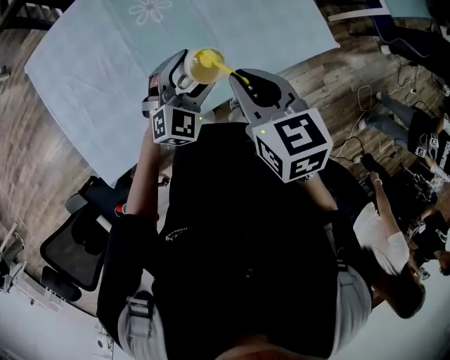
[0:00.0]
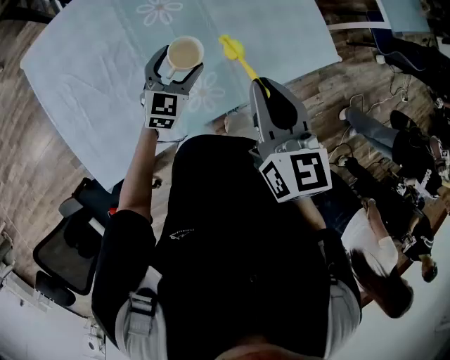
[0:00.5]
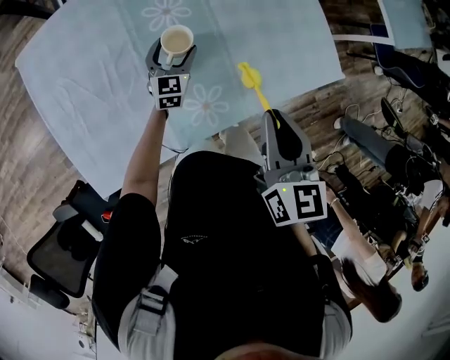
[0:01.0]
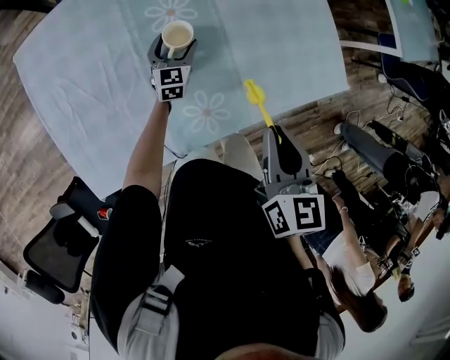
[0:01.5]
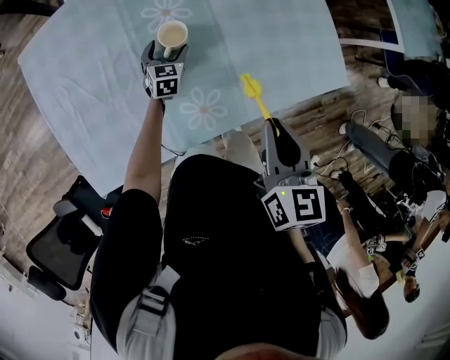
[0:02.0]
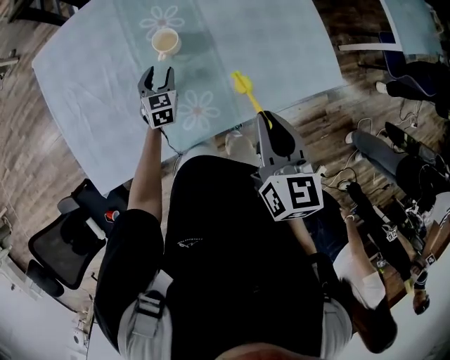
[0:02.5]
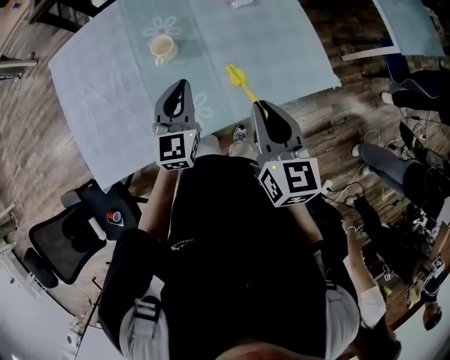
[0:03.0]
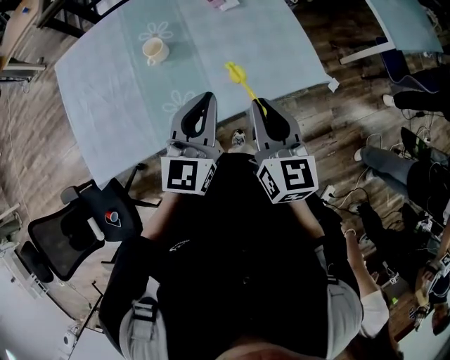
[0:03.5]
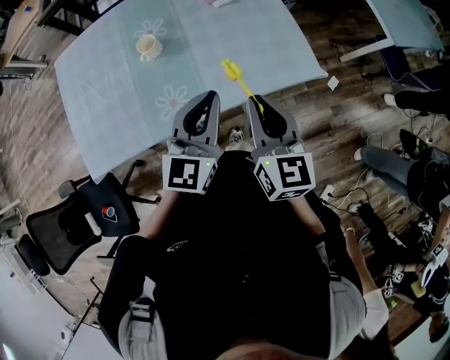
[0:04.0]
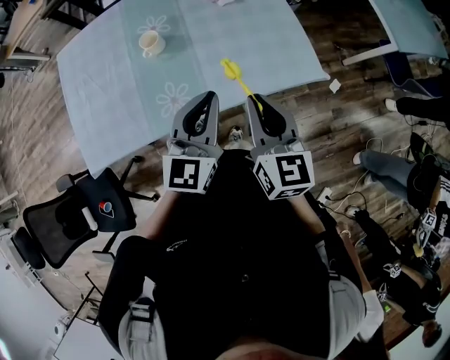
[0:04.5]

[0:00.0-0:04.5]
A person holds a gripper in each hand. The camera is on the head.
0.0 to 2.0 s: The right gripper shifts by approximately 5 cm. The left gripper moves downward, forward and to the left, approximately 30 cm, and turns by approximately 50 degrees.
2.0 to 4.5 s: The left gripper heads upward, backward and to the right, covering approximately 50 cm, tilts its fingers some 30 degrees upward, and closes. The right gripper heads to the right and backward, covering approximately 15 cm, and rotates about 20 degrees.

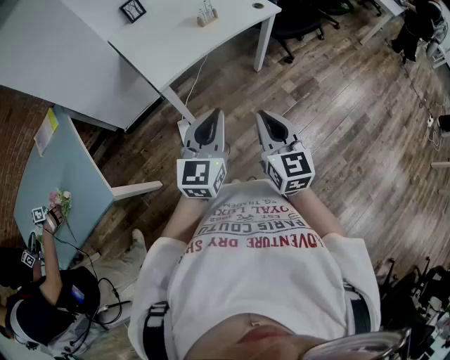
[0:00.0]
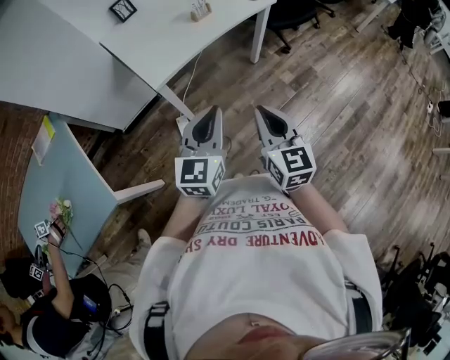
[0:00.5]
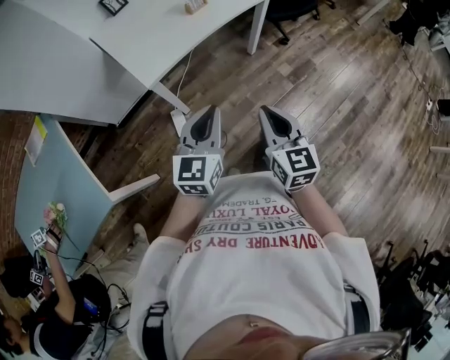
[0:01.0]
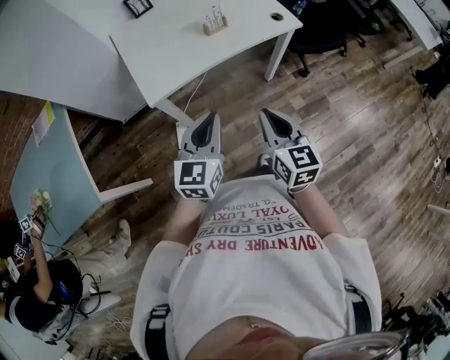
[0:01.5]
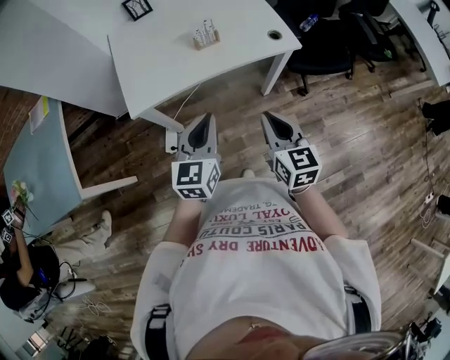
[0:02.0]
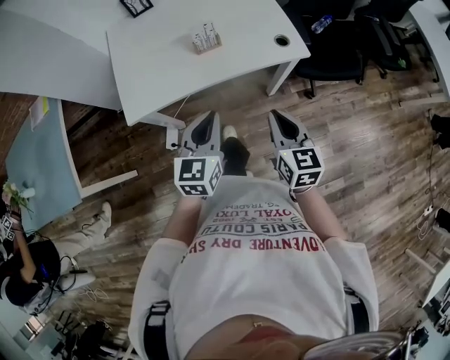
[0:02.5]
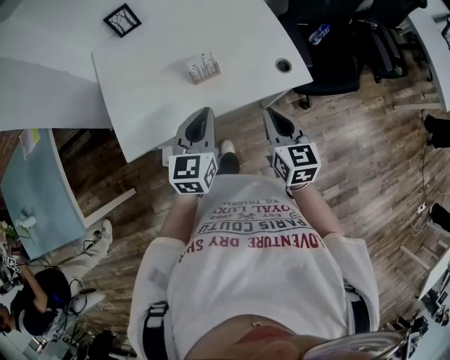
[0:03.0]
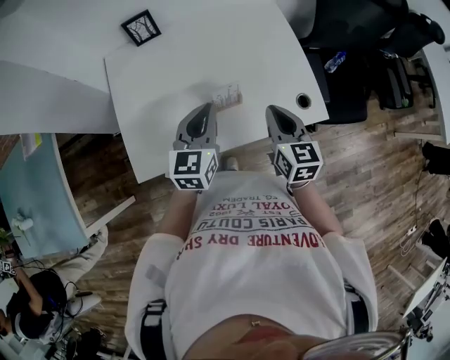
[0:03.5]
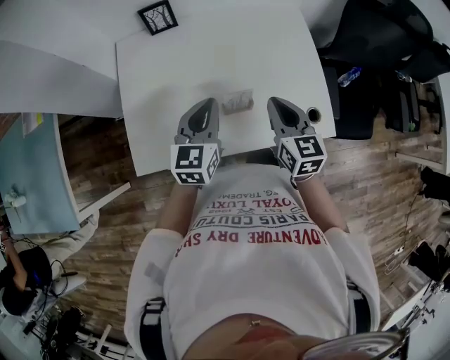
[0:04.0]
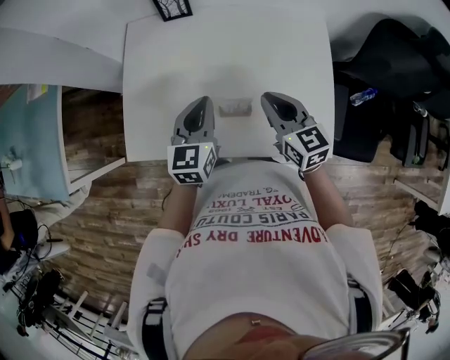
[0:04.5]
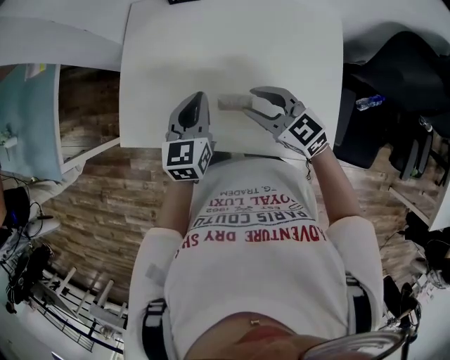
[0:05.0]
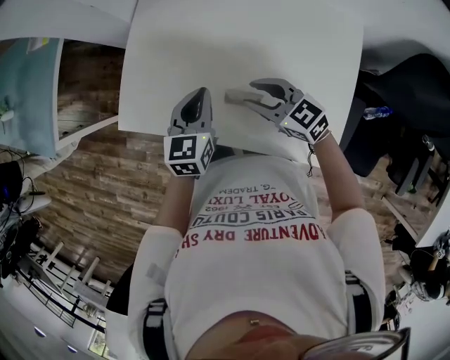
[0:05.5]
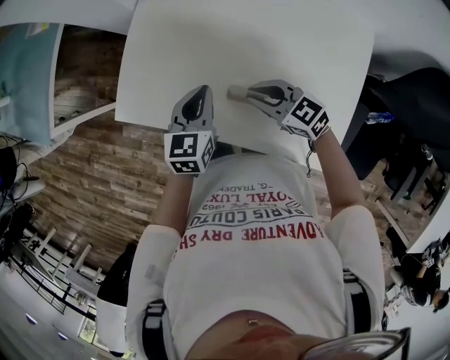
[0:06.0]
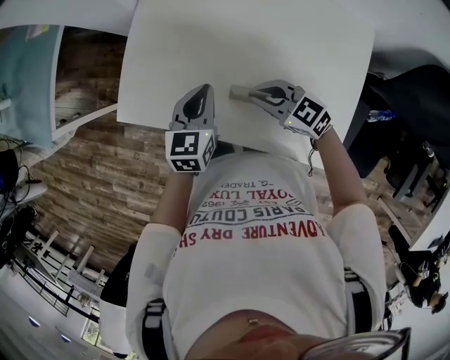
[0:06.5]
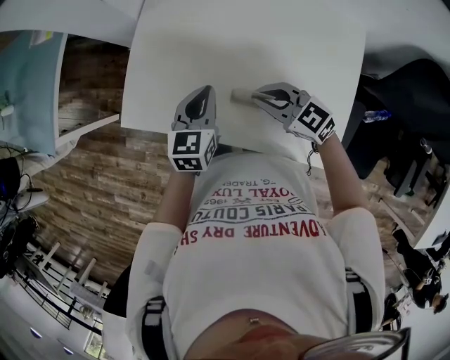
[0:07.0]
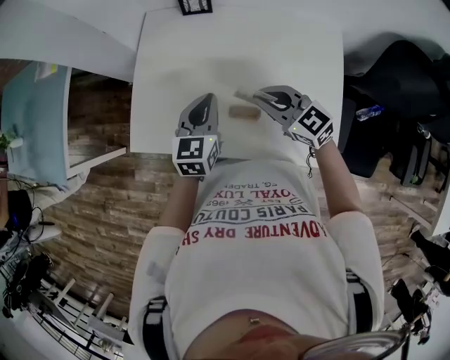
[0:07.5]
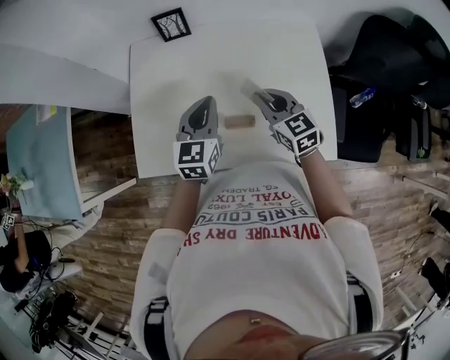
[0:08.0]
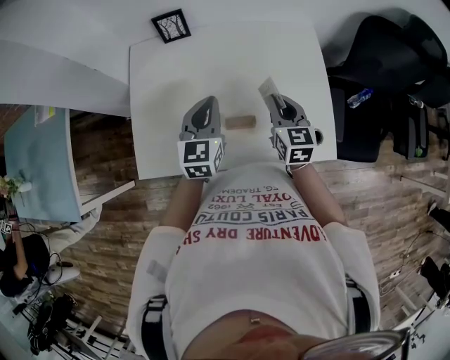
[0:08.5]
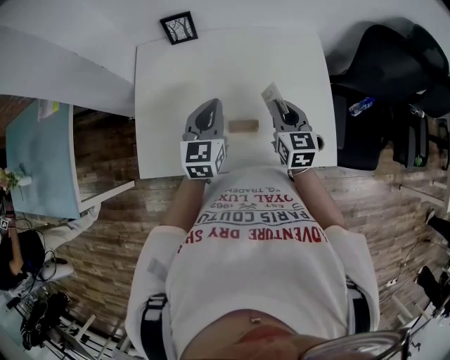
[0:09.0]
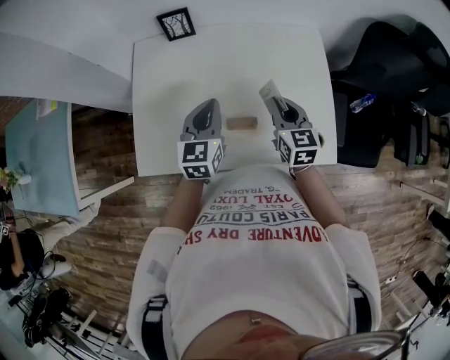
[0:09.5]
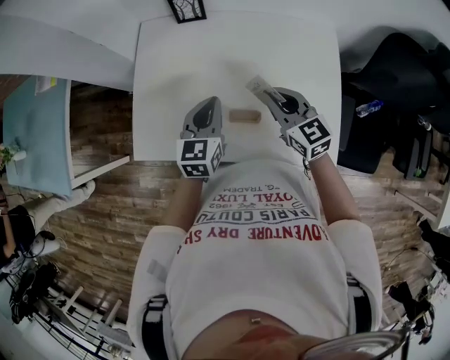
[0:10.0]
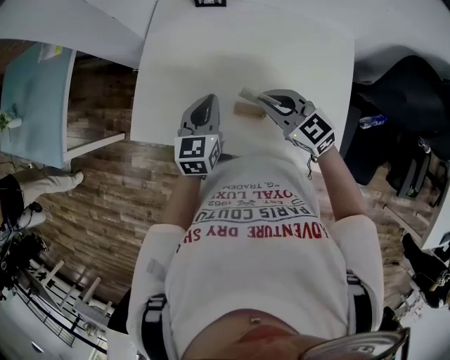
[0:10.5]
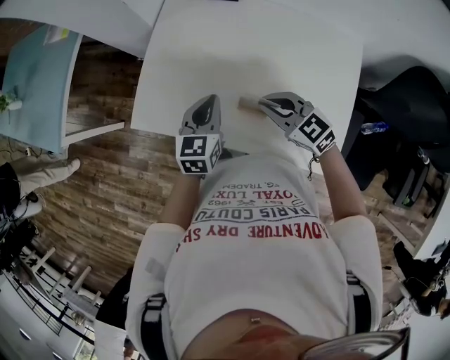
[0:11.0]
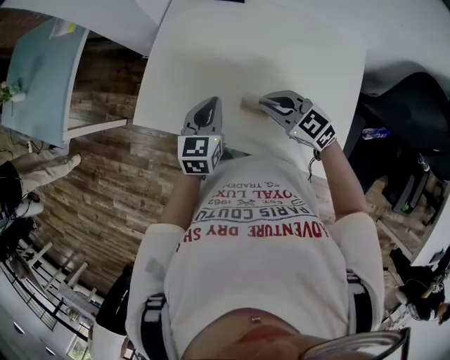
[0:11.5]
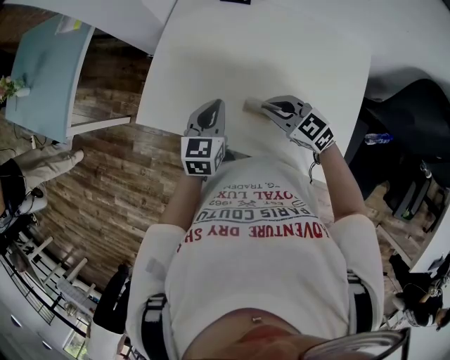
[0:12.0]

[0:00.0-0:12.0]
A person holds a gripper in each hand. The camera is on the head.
0.0 to 2.0 s: The grippers both shift forward and to the right by approximately 30 cm. The left gripper rotates approximately 20 degrees. Meanwhile the right gripper rotates some 20 degrees.
2.0 to 4.0 s: Both grippers move forward, some 40 cm.
4.0 to 6.0 s: Both grippers travel together downward, about 10 cm. The right gripper changes its angle by approximately 70 degrees, and opens, then closes again. Meanwhile the left gripper swivels about 30 degrees.
6.0 to 8.0 s: Both grippers move upward, about 10 cm. The right gripper rotates some 50 degrees, while the left gripper swivels about 20 degrees.
10.0 to 12.0 s: The left gripper moves roughly 5 cm. Meanwhile the right gripper shifts by about 10 cm, and rotates roughly 40 degrees.

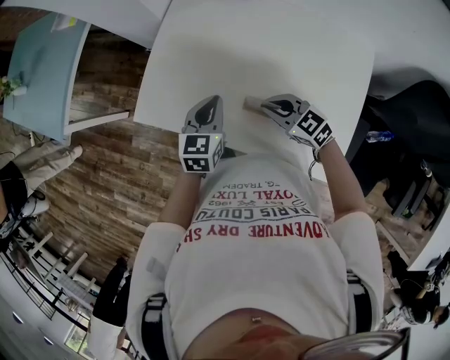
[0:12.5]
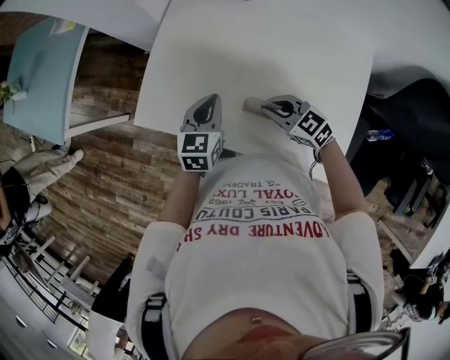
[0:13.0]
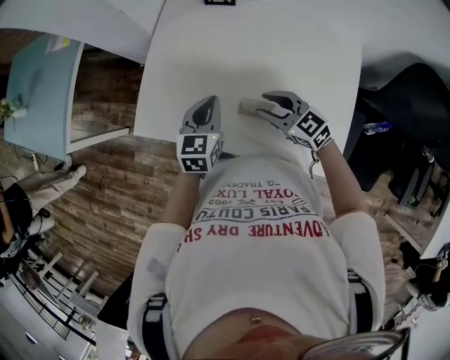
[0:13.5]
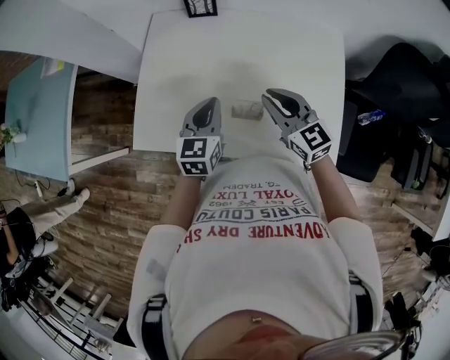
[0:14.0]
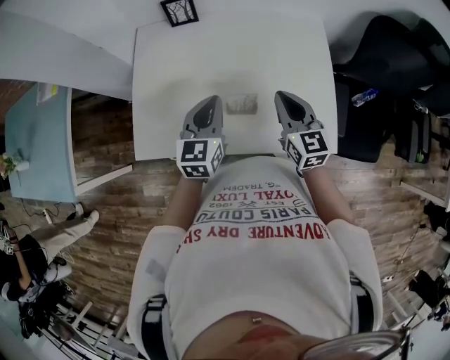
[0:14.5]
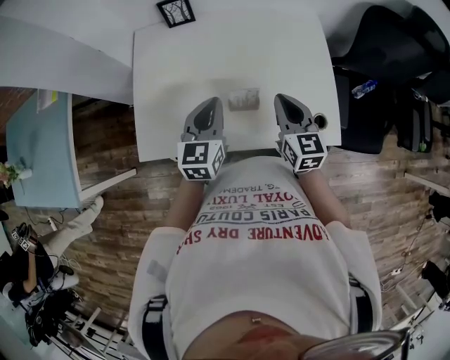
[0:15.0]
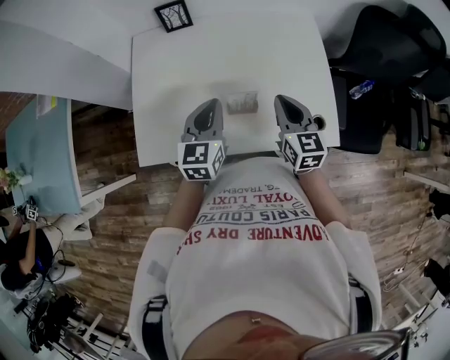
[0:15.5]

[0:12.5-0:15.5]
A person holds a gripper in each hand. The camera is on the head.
12.5 to 14.0 s: The right gripper travels upward by about 10 cm, swivels about 40 degrees, and opens, then closes again. Meanwhile the left gripper ends up approximately 5 cm from where it was.
14.0 to 15.5 s: The right gripper travels to the right and backward by about 10 cm, and changes its angle by approximately 30 degrees.

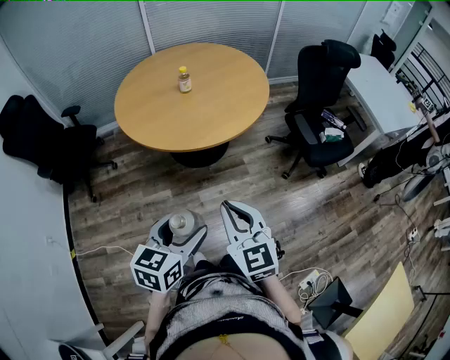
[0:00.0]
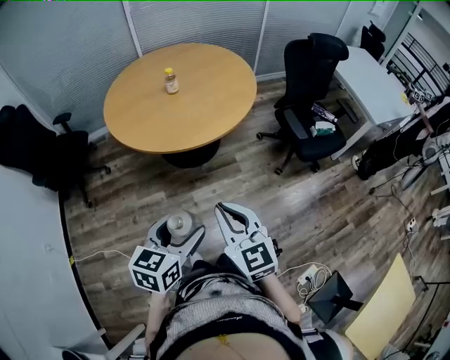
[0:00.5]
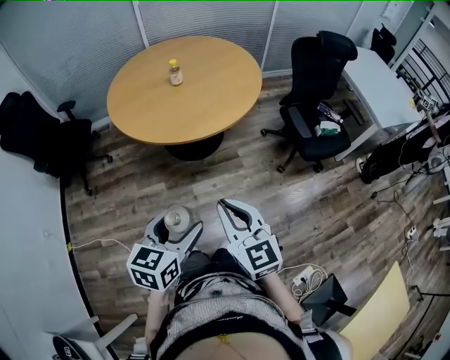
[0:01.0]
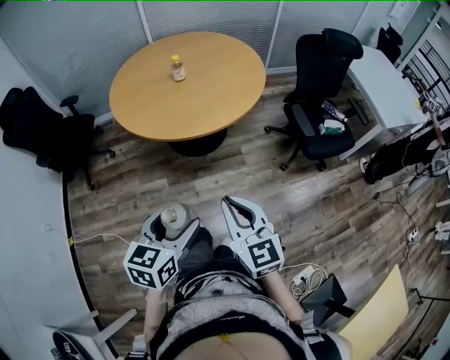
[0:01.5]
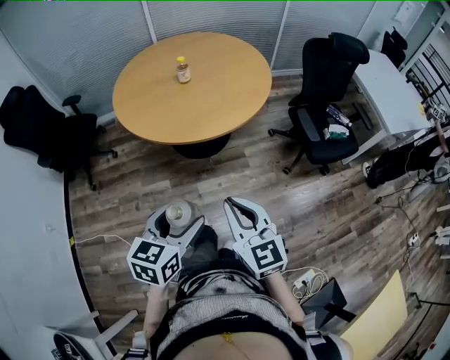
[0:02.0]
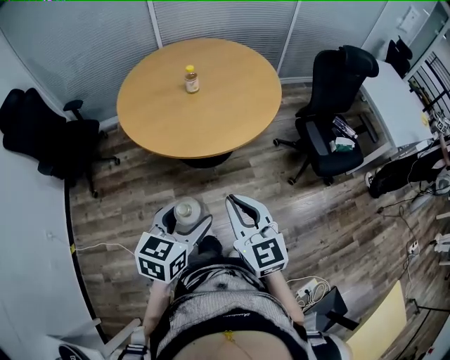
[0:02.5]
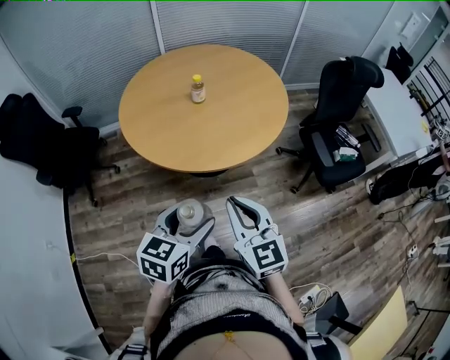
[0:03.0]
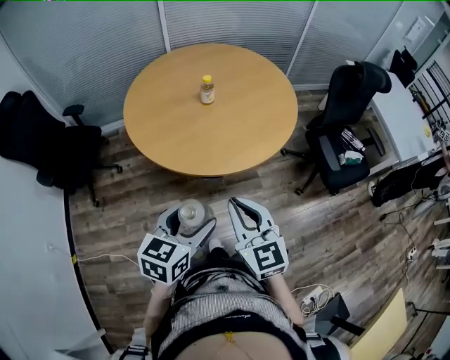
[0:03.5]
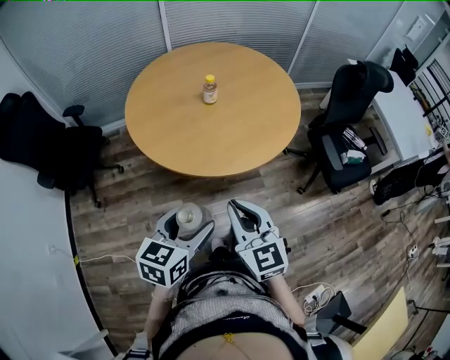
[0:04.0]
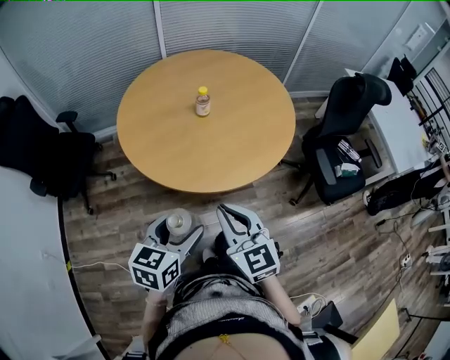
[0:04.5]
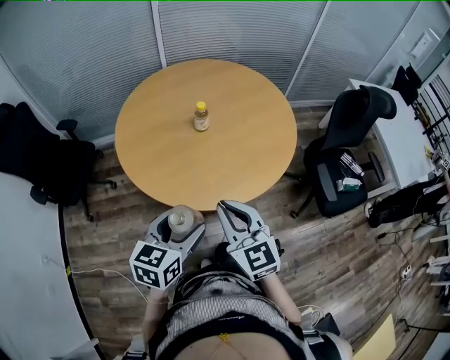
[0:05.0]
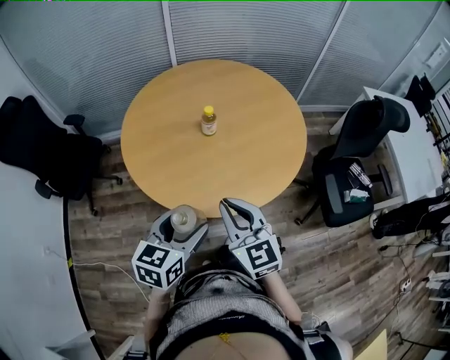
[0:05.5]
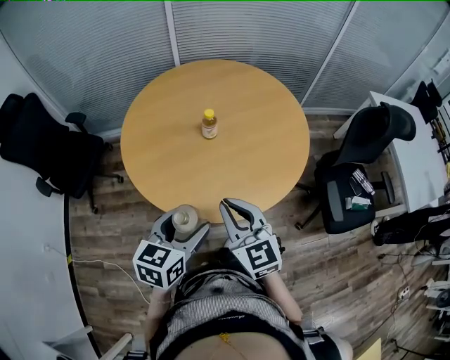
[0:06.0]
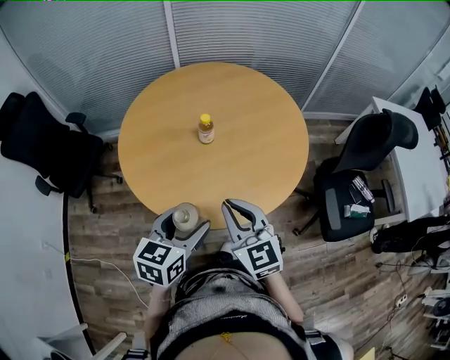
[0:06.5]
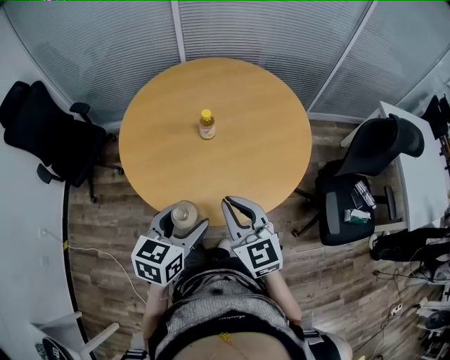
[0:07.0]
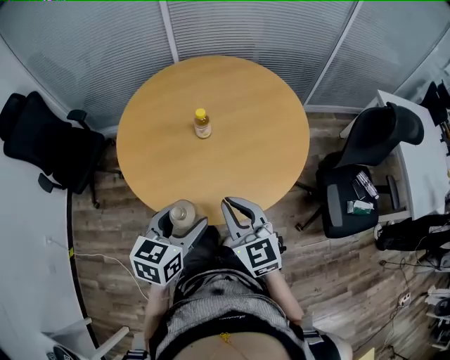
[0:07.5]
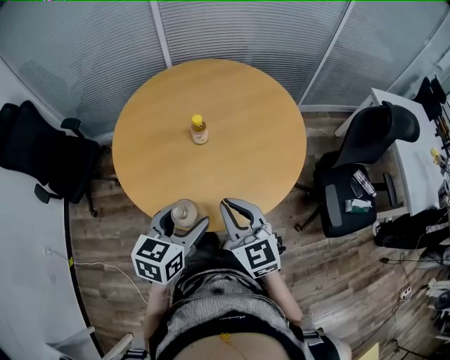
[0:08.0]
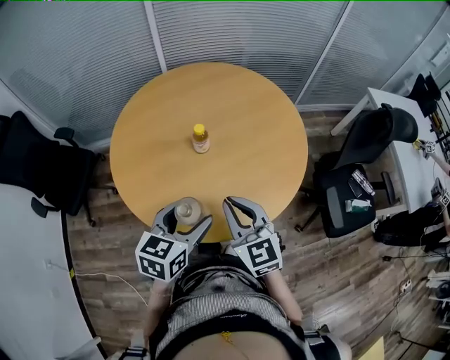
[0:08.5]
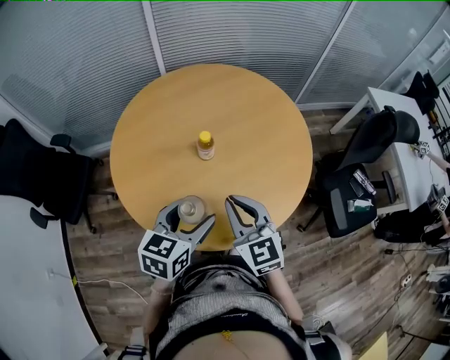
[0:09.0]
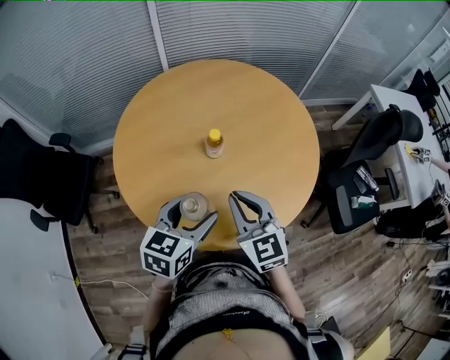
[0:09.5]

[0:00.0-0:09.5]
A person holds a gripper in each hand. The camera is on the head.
0.0 to 2.0 s: The right gripper changes place by roughly 5 cm.
2.0 to 4.0 s: The left gripper heads forward and to the left, covering some 20 cm. Meanwhile the right gripper shifts roughly 20 cm to the left and forward.
4.0 to 5.5 s: The grippers both shift forward by approximately 15 cm.
5.5 to 7.5 s: Both grippers move to the right and forward, roughly 10 cm.
7.5 to 9.5 s: The grippers both shift forward and to the left by about 15 cm.
